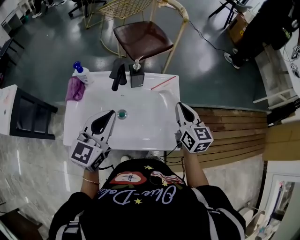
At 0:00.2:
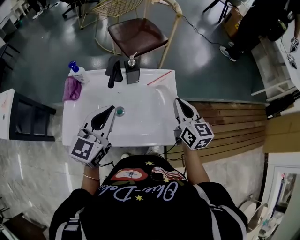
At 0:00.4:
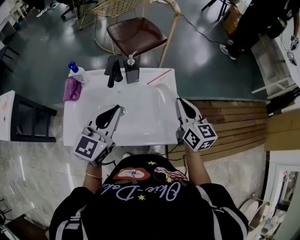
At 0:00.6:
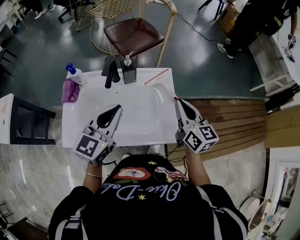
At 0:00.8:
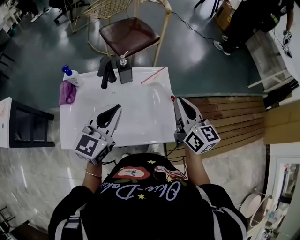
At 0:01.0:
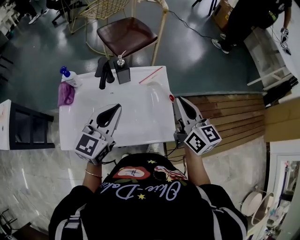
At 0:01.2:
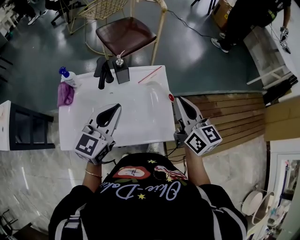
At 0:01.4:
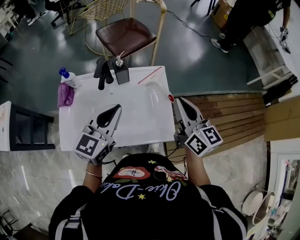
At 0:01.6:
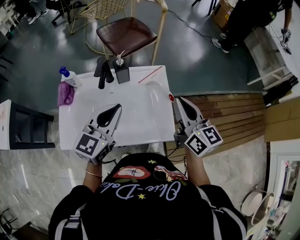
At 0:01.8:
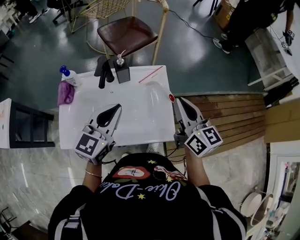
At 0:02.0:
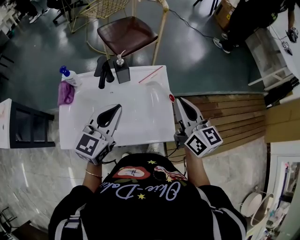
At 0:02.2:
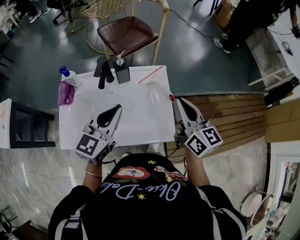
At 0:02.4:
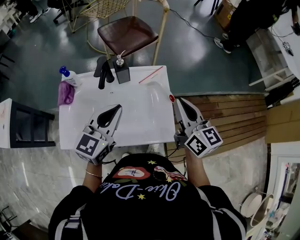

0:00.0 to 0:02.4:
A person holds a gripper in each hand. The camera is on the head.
0:00.0 to 0:01.2: The right gripper travels upward by some 5 cm, while the left gripper goes approximately 5 cm to the right.
0:01.2 to 0:02.4: Both grippers stay about where they are.

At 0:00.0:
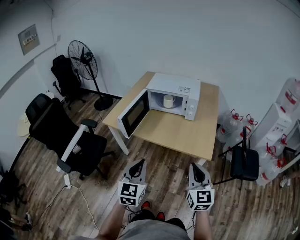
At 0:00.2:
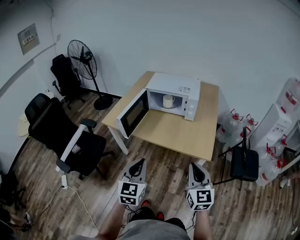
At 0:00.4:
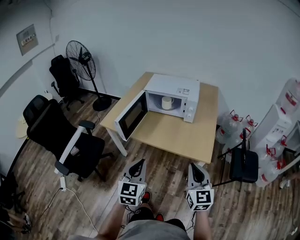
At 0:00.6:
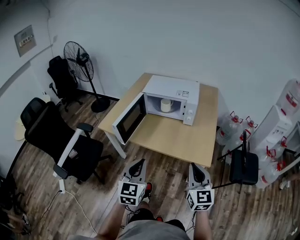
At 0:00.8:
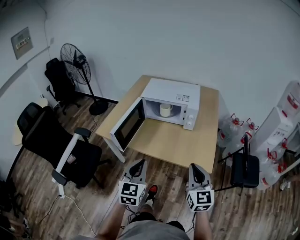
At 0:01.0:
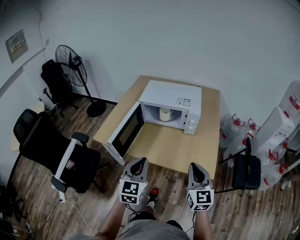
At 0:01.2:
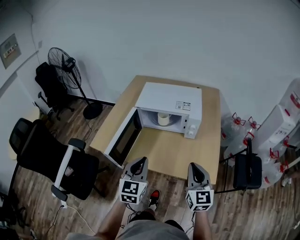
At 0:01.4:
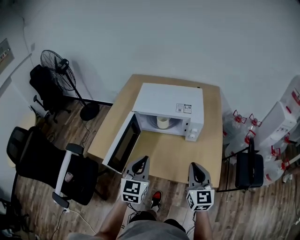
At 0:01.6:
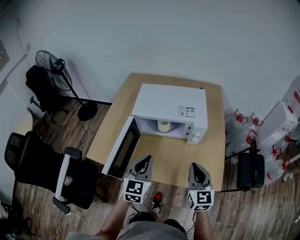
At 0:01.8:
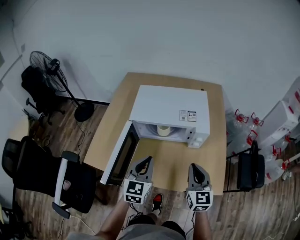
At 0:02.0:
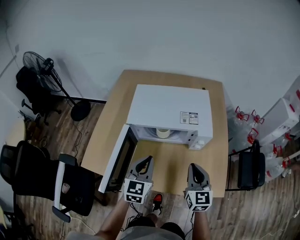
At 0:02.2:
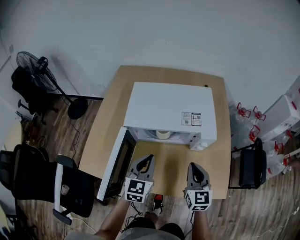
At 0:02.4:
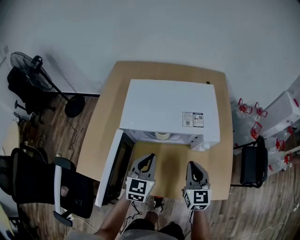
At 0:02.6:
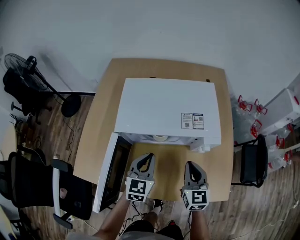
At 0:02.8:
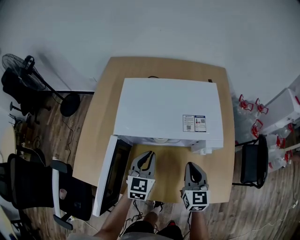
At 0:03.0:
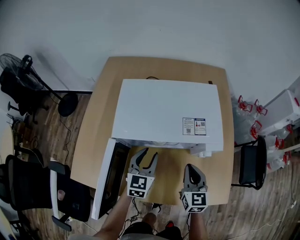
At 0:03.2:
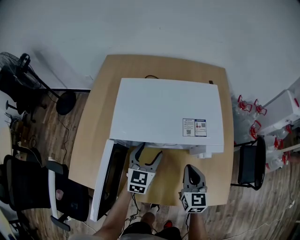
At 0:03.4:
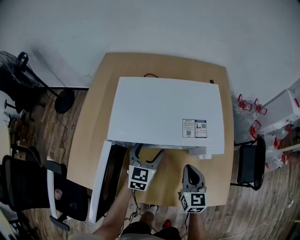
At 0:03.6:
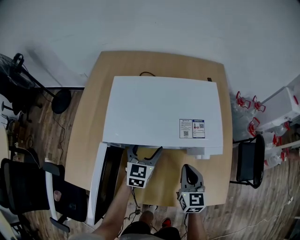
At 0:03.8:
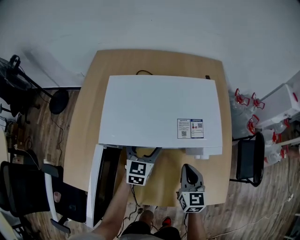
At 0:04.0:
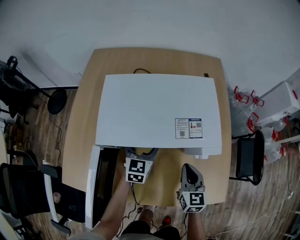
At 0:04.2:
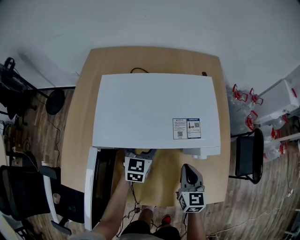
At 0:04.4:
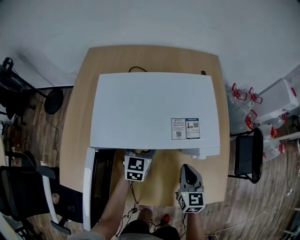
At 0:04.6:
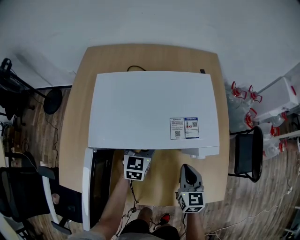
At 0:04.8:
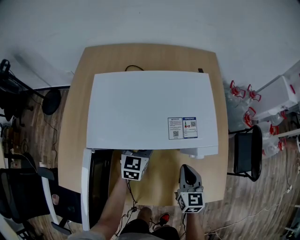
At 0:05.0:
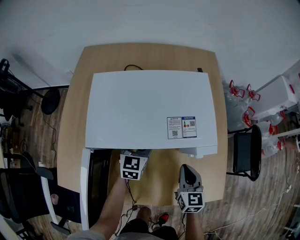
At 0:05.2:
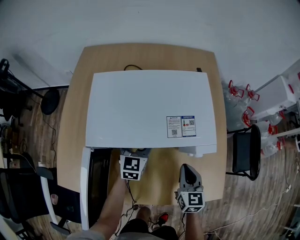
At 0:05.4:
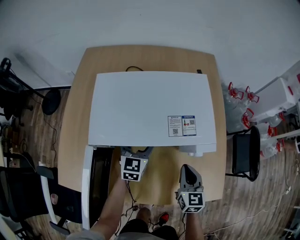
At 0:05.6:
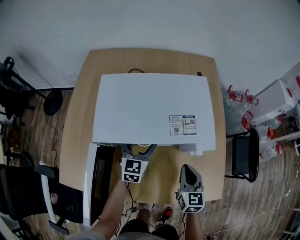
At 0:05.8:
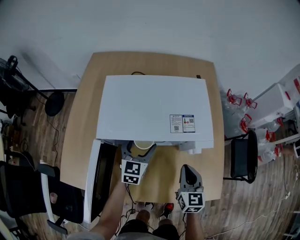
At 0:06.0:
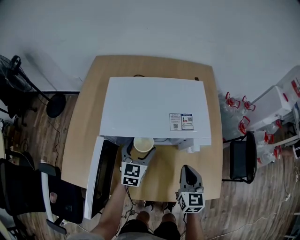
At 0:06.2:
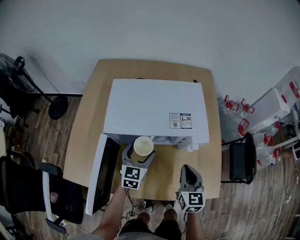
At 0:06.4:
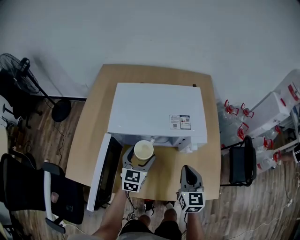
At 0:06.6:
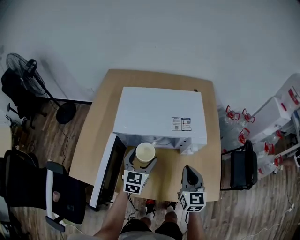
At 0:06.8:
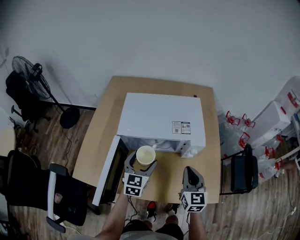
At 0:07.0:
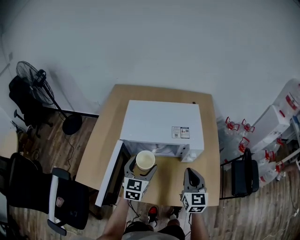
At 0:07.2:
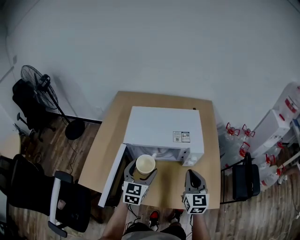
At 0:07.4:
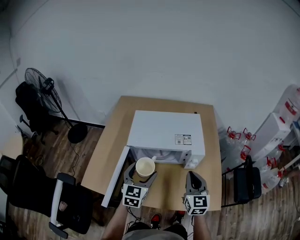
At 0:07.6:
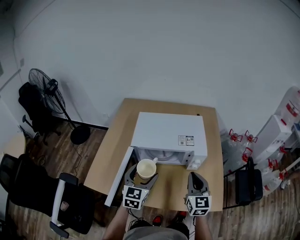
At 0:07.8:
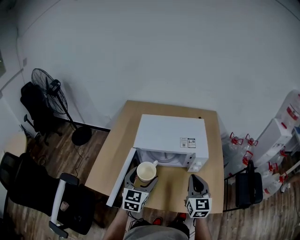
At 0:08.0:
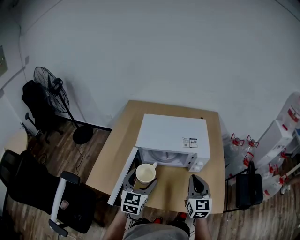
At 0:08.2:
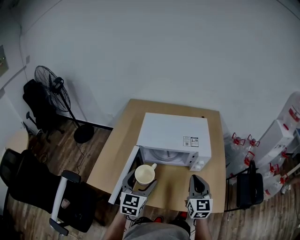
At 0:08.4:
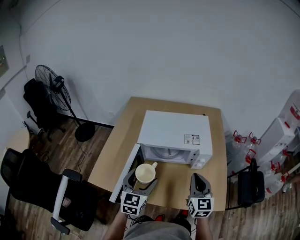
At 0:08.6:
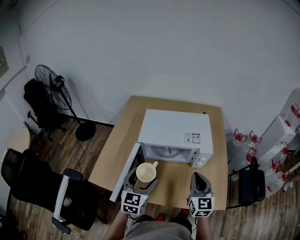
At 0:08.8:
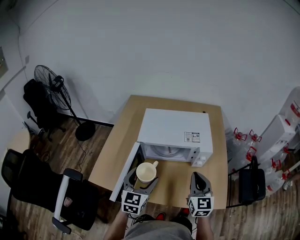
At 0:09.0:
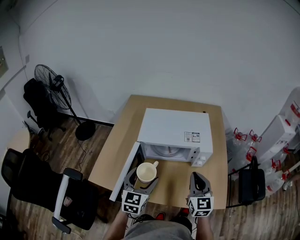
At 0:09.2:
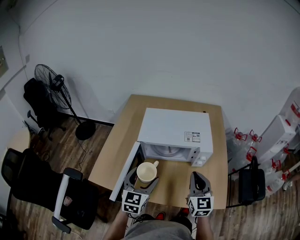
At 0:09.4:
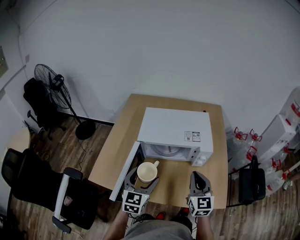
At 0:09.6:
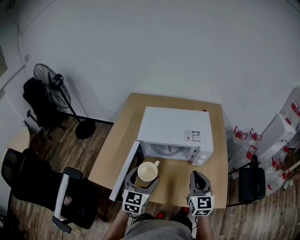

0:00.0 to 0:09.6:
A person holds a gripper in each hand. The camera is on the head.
0:00.0 to 0:01.6: Both grippers move forward, about 35 cm.
0:01.6 to 0:03.2: Both grippers travel together forward and downward, approximately 25 cm. The left gripper opens up.
0:03.2 to 0:04.8: The left gripper travels forward by approximately 10 cm. The right gripper changes place by about 5 cm.
0:04.8 to 0:06.4: The left gripper heads backward and upward, covering approximately 15 cm, while the right gripper travels upward by approximately 10 cm.
0:06.4 to 0:08.0: The left gripper goes some 20 cm upward and backward; the right gripper is displaced upward by some 10 cm.
0:08.0 to 0:09.6: The grippers stay close to where they were, moving slightly.

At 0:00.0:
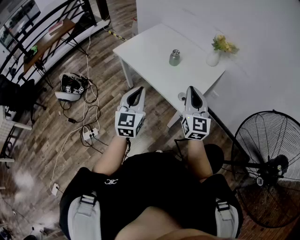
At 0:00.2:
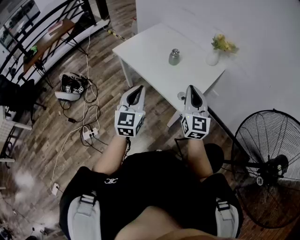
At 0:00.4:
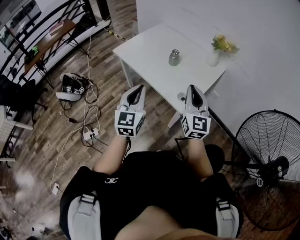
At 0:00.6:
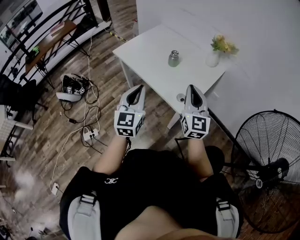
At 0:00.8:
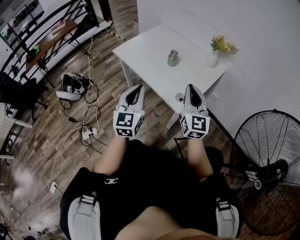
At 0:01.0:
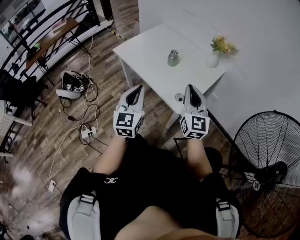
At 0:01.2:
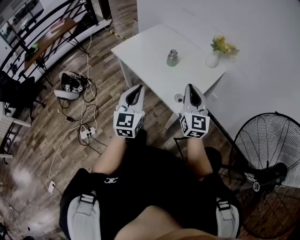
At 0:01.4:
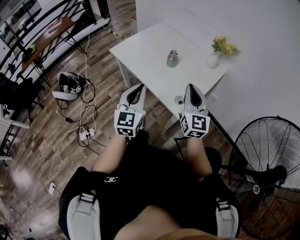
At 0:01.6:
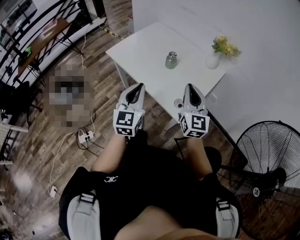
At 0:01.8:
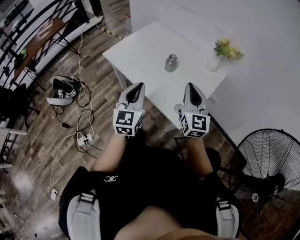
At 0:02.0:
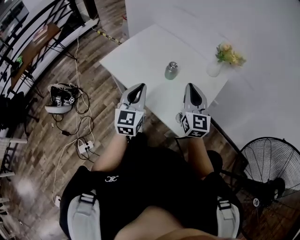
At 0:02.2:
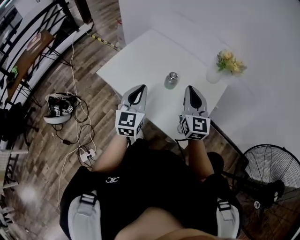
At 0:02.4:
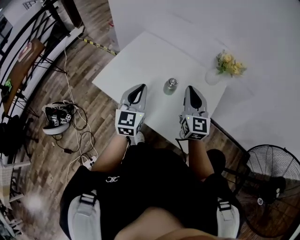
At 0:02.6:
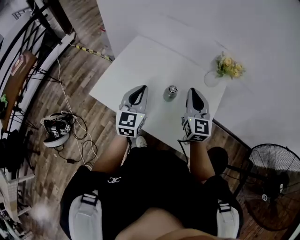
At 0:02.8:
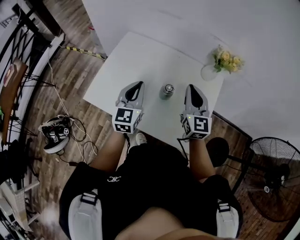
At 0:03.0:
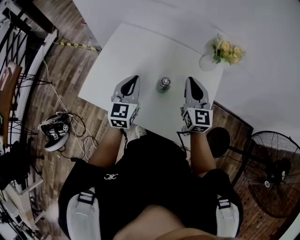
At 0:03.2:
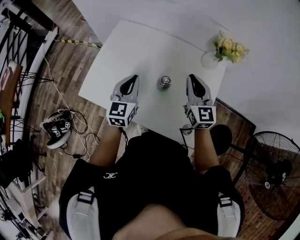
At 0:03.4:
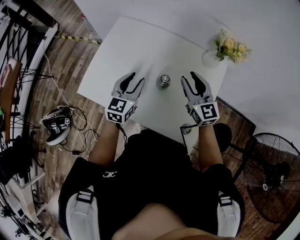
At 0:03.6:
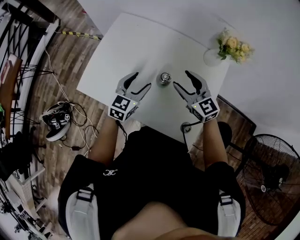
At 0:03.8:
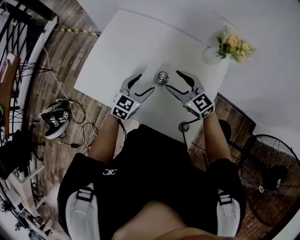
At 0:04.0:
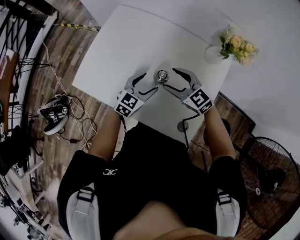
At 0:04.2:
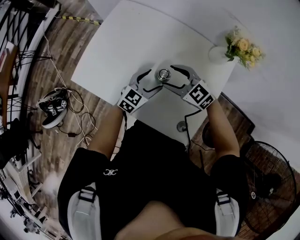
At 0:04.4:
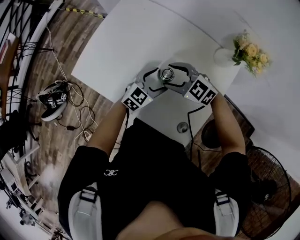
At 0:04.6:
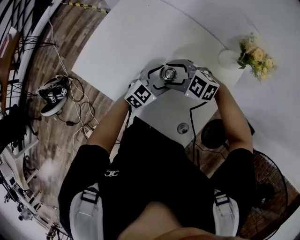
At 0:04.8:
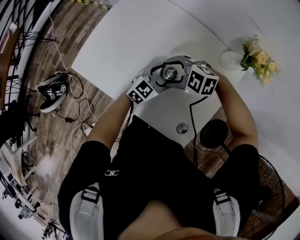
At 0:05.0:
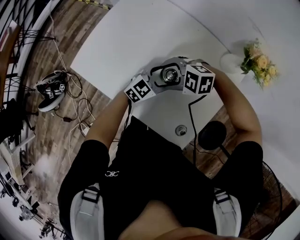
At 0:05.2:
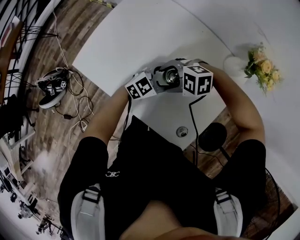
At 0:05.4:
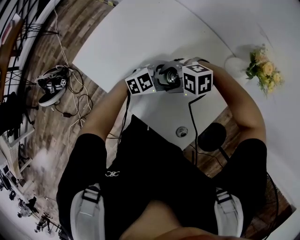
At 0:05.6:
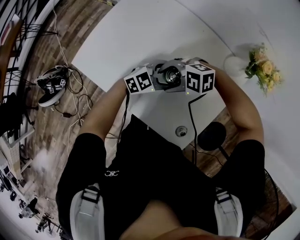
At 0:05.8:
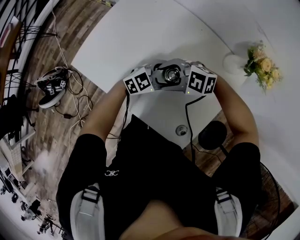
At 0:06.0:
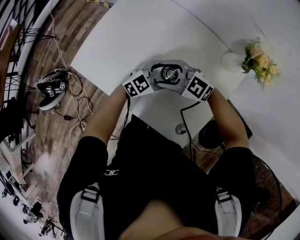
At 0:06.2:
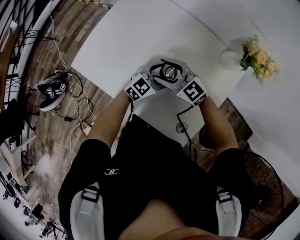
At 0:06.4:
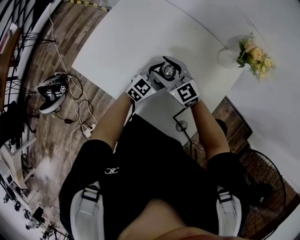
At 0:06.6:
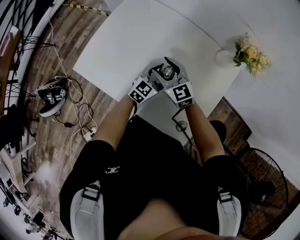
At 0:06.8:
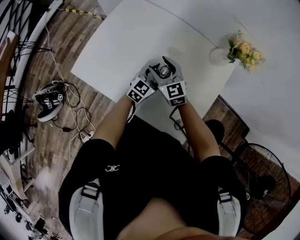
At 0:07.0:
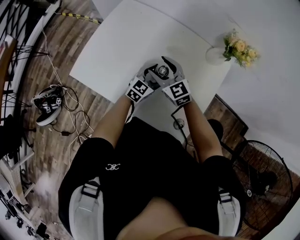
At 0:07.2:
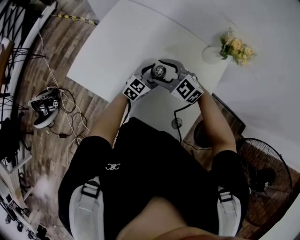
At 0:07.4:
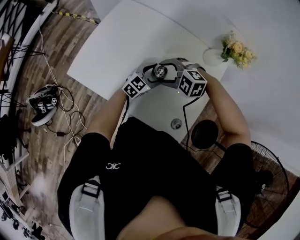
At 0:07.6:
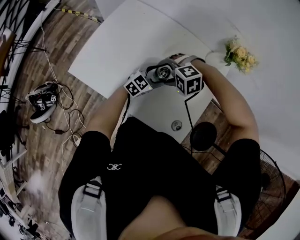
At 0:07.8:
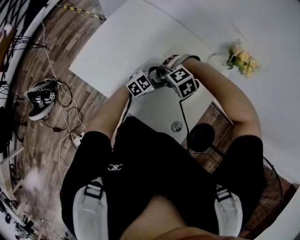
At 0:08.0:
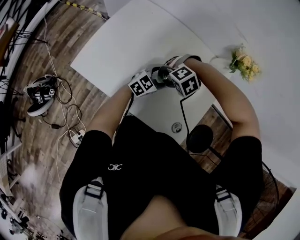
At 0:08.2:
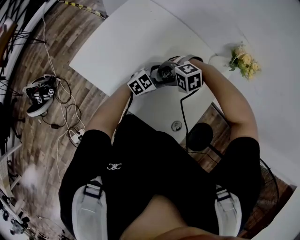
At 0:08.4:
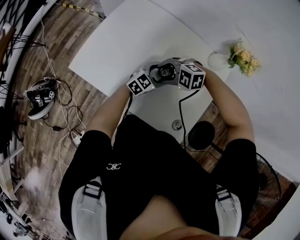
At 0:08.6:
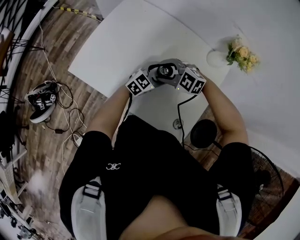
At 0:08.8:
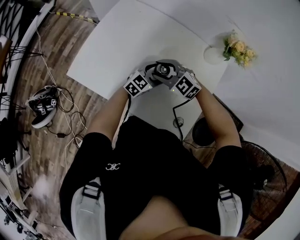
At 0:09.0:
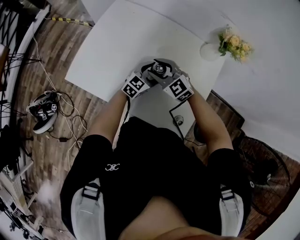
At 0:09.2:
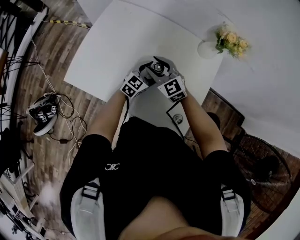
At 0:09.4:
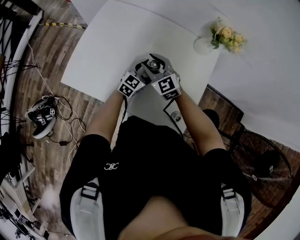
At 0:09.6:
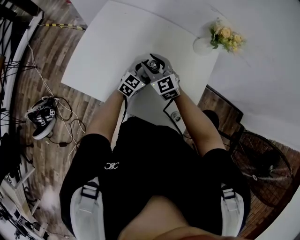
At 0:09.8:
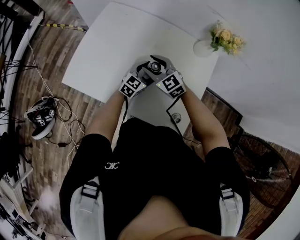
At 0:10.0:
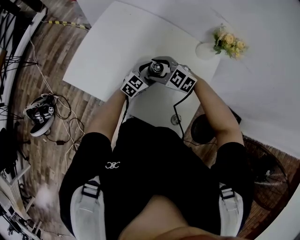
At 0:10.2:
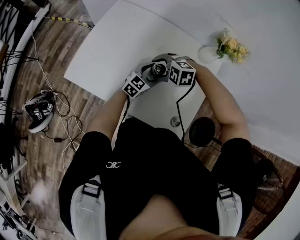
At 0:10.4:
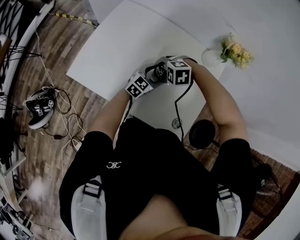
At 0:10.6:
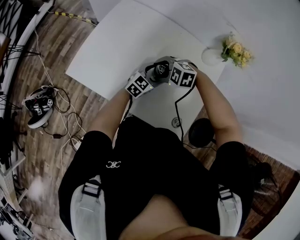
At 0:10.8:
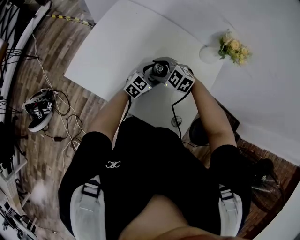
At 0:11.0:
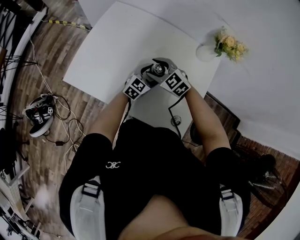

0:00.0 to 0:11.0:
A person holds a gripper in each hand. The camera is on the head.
0:00.0 to 0:01.6: Both grippers move forward, some 10 cm.
0:01.6 to 0:03.2: The grippers both shift forward by some 35 cm. The left gripper changes its angle by some 30 degrees.
0:03.2 to 0:04.8: Both grippers travel together downward, approximately 15 cm. The right gripper angles its fingers downward, by approximately 40 degrees, and opens its fingers. Meanwhile the left gripper turns by about 30 degrees, and opens its fingers.
0:04.8 to 0:06.2: The right gripper turns by approximately 40 degrees.
0:06.2 to 0:07.8: The right gripper changes place by about 10 cm, and angles its fingers downward, by some 70 degrees.
0:07.8 to 0:09.4: The right gripper ends up some 10 cm from where it was, points its fingers some 60 degrees further upward, and closes.
0:09.4 to 0:11.0: The right gripper turns by approximately 20 degrees.
